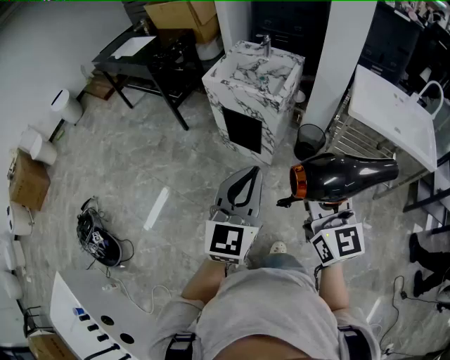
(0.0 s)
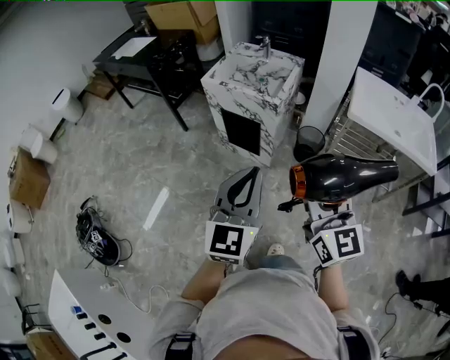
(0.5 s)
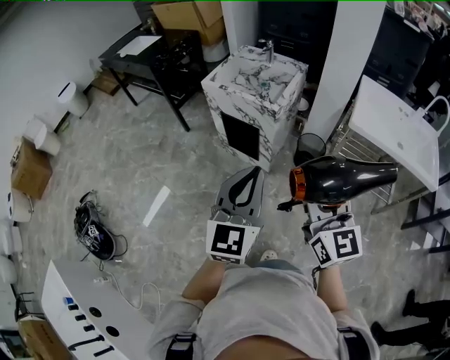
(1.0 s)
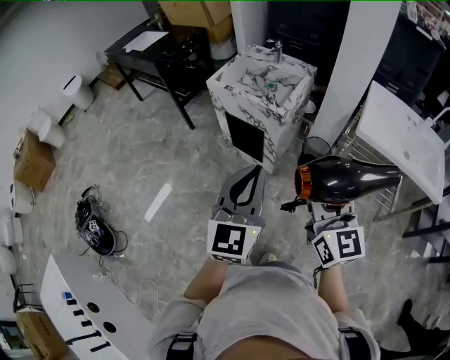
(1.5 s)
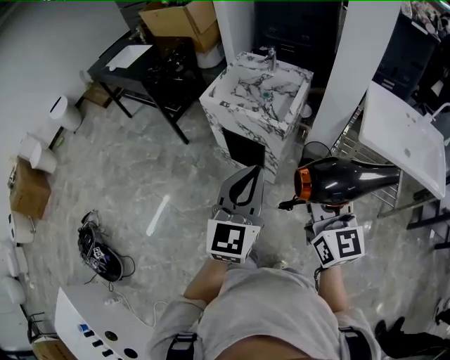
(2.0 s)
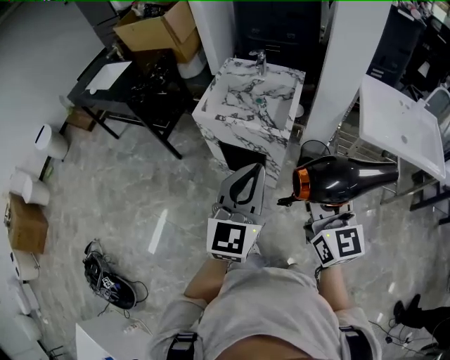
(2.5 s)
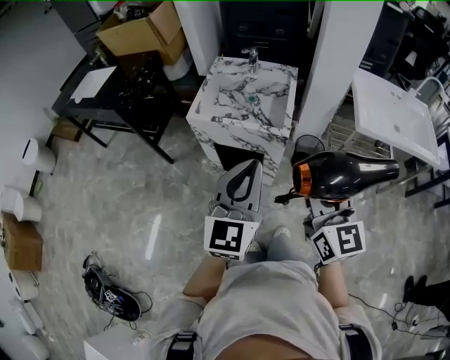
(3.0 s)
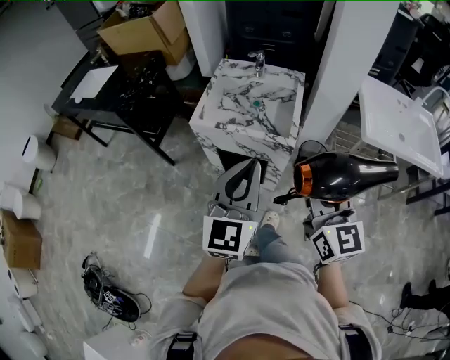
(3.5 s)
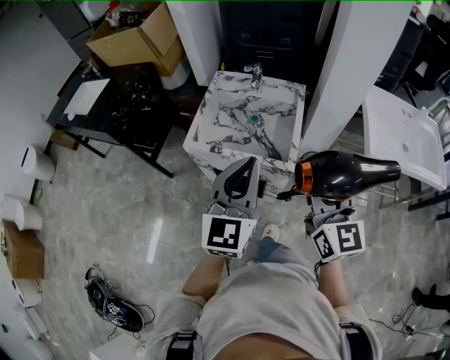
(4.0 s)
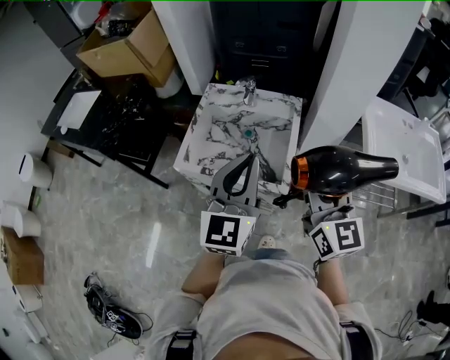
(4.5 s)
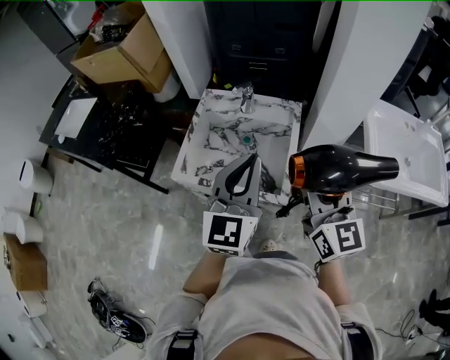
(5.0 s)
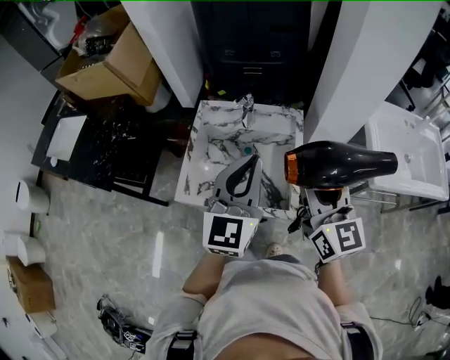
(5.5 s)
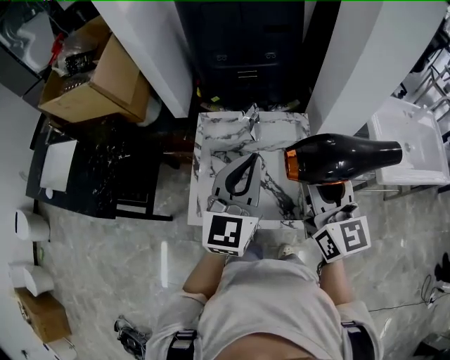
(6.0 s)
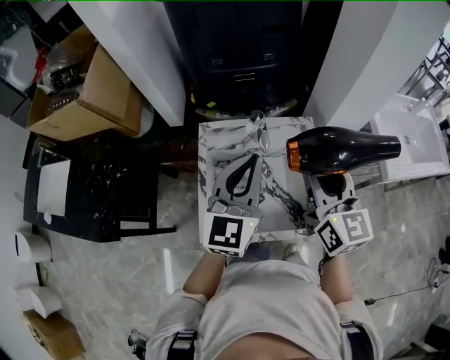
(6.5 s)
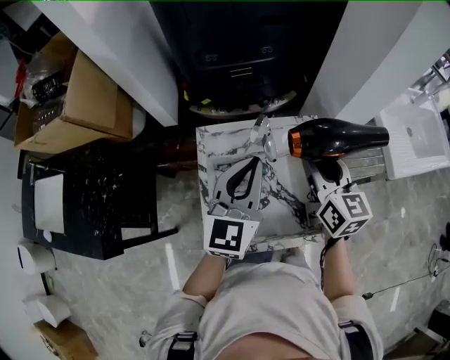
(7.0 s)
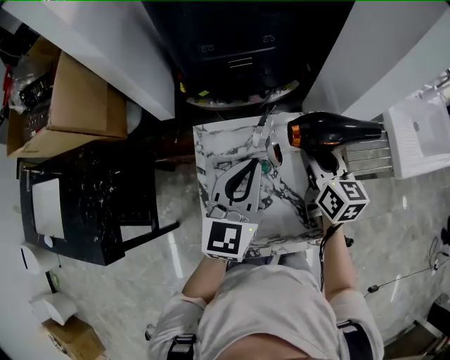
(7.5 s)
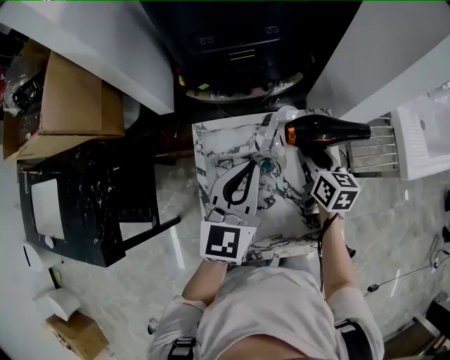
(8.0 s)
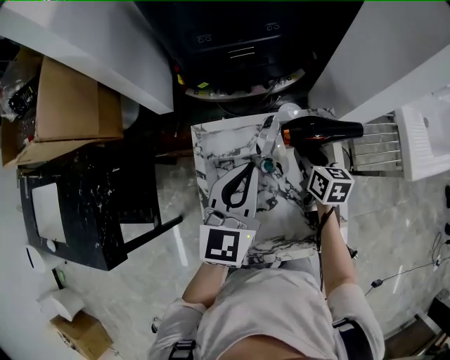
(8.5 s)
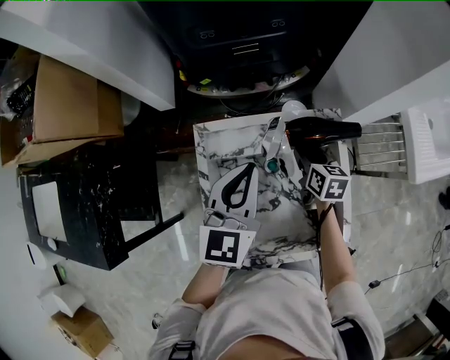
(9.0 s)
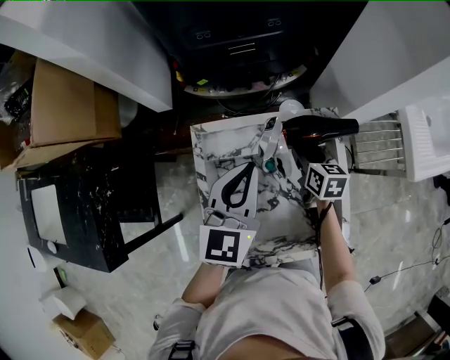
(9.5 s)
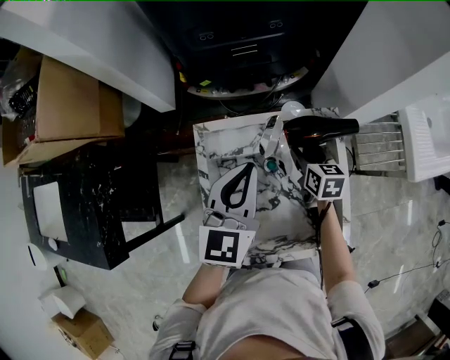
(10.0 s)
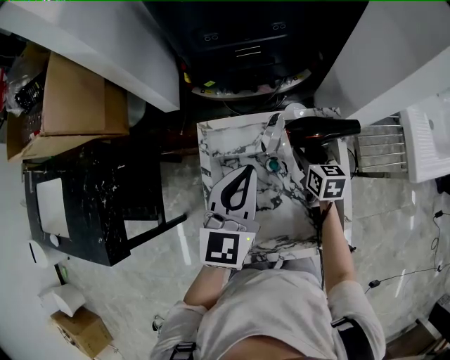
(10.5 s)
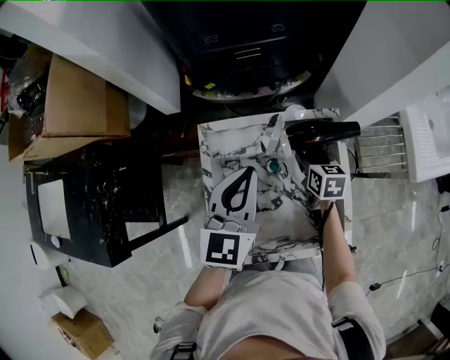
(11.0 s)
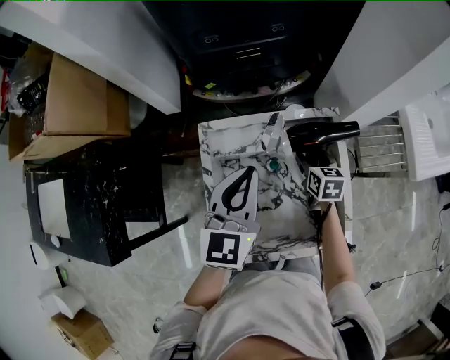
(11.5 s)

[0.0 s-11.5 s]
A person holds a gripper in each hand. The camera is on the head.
0.0 to 2.0 s: Both grippers travel together forward, roughly 15 cm.
2.0 to 4.0 s: The right gripper moves forward and to the left, approximately 25 cm, while the left gripper moves forward, roughly 25 cm.
4.0 to 6.0 s: Both grippers move forward, about 25 cm.
6.0 to 7.5 s: The left gripper shifts some 15 cm forward, downward and to the left, while the right gripper travels forward and downward by roughly 25 cm, and swivels roughly 30 degrees.
7.5 to 9.5 s: The left gripper moves some 5 cm, while the right gripper is displaced downward by approximately 15 cm, and changes its angle by some 20 degrees.
9.5 to 11.5 s: The grippers stay close to where they were, moving slightly.

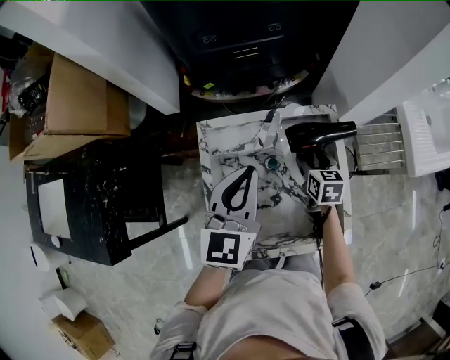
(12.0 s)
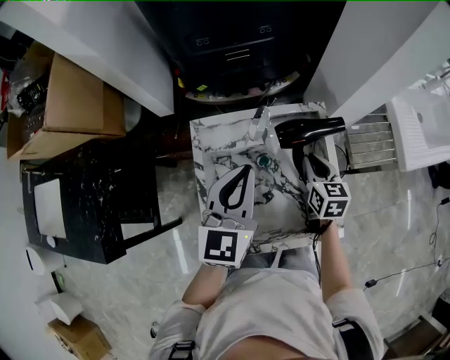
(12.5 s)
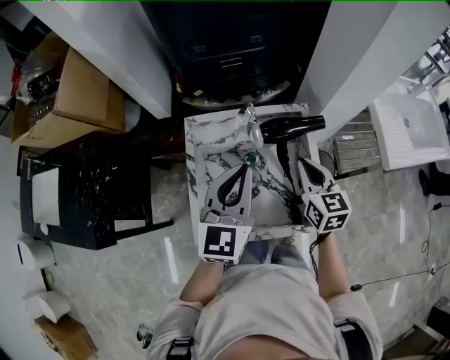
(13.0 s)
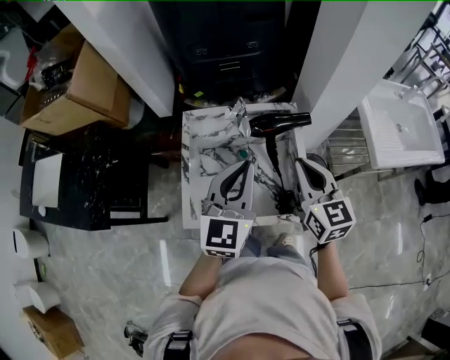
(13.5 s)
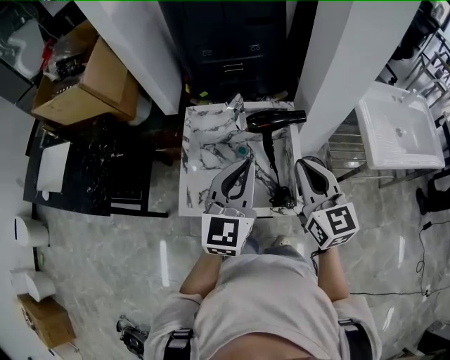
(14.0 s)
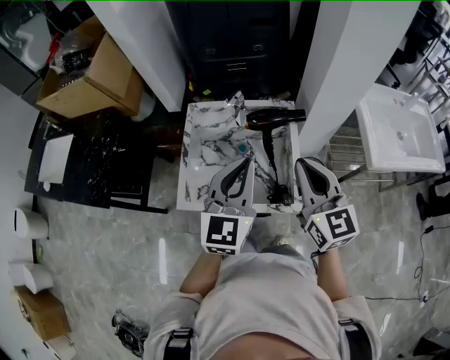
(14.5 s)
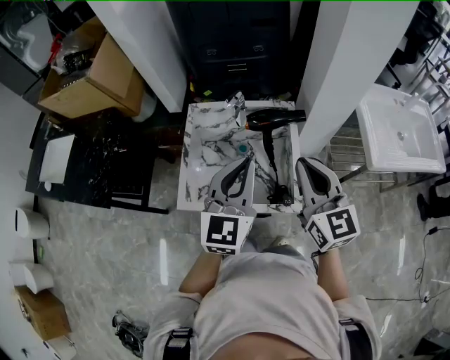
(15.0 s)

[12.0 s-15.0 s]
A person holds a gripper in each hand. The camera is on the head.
12.0 to 13.5 s: The right gripper heads upward and backward, covering some 30 cm, swivels about 30 degrees, and closes up, while the left gripper heads backward, to the right and upward, covering roughly 15 cm.
13.5 to 15.0 s: The right gripper heads upward and backward, covering approximately 10 cm, while the left gripper is displaced backward by roughly 5 cm.

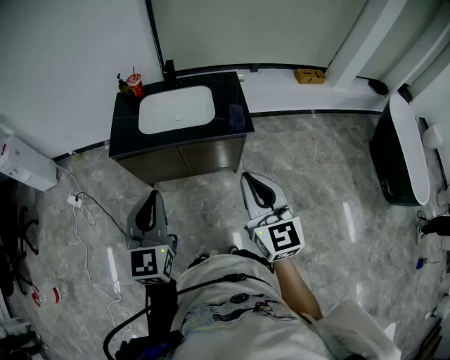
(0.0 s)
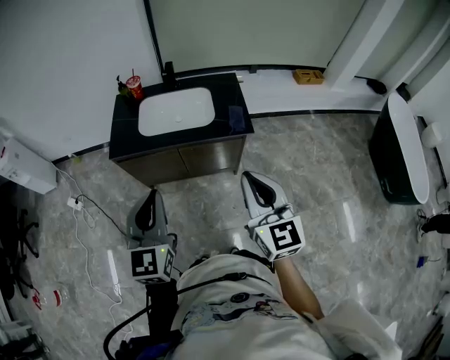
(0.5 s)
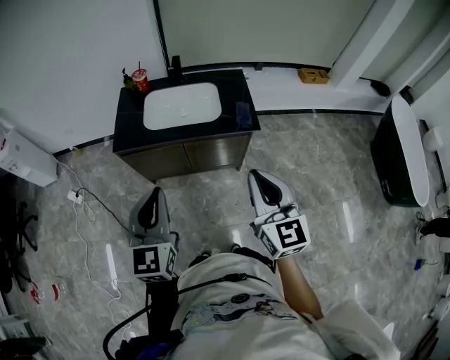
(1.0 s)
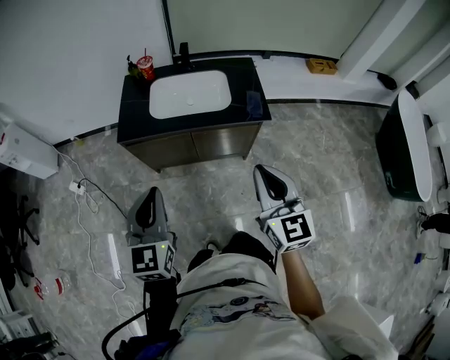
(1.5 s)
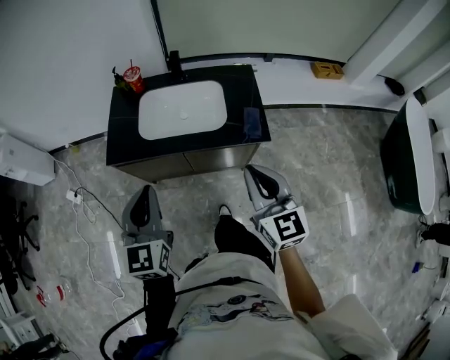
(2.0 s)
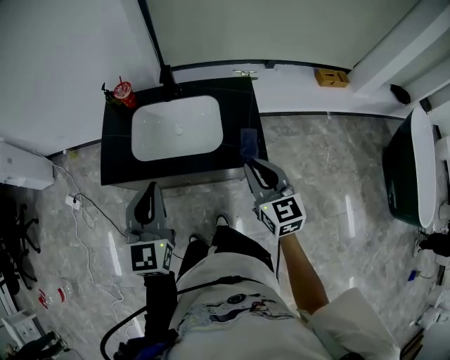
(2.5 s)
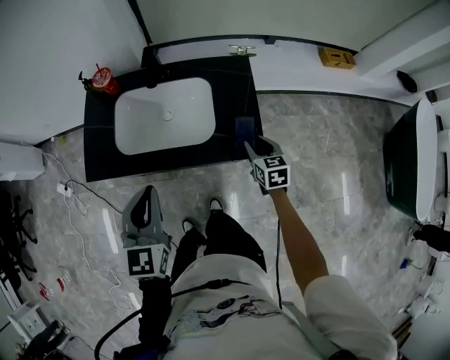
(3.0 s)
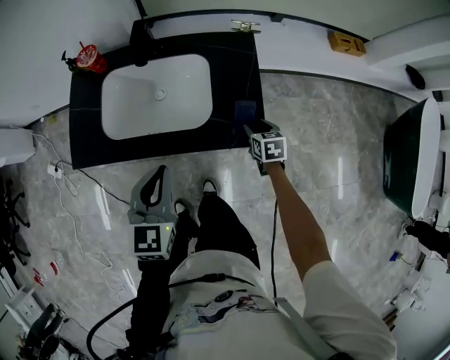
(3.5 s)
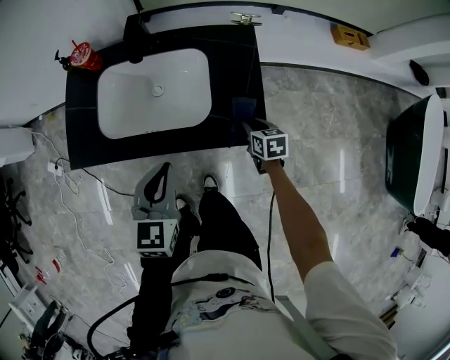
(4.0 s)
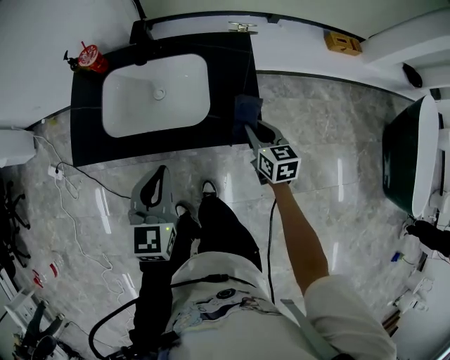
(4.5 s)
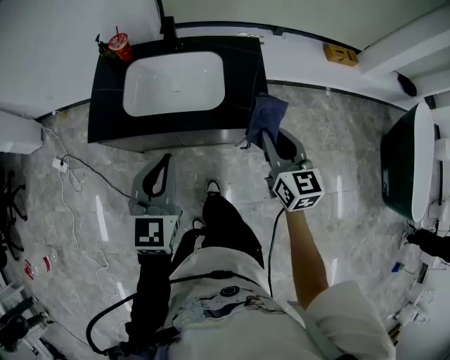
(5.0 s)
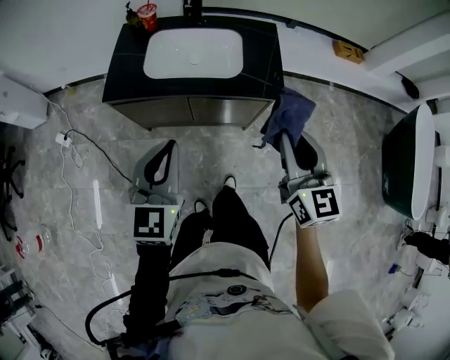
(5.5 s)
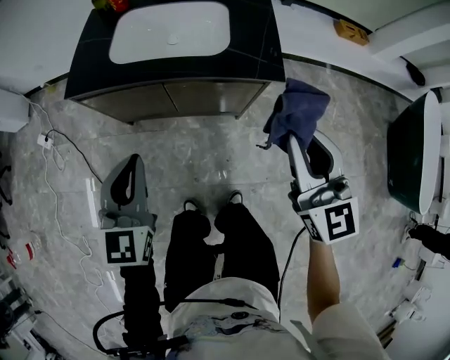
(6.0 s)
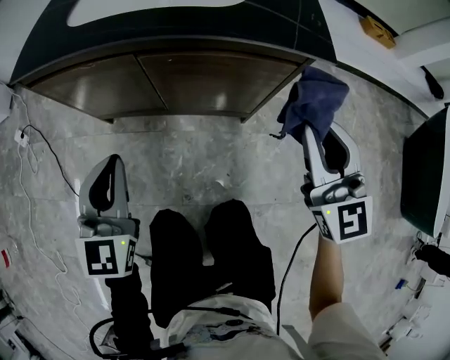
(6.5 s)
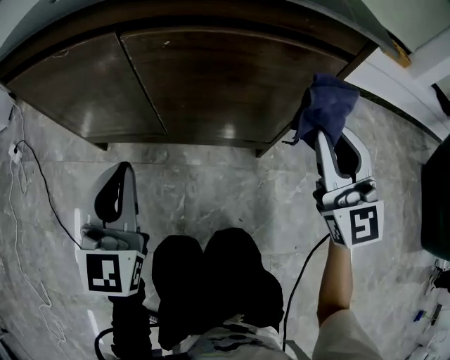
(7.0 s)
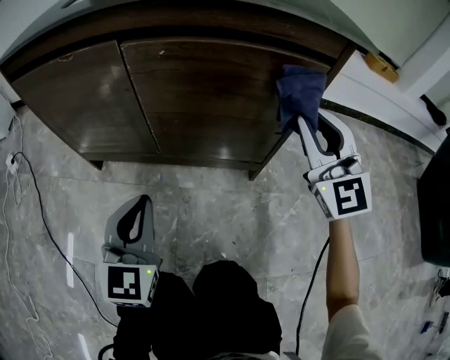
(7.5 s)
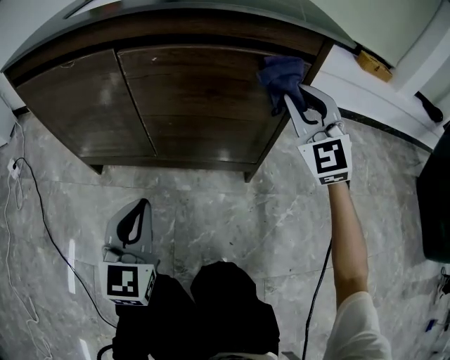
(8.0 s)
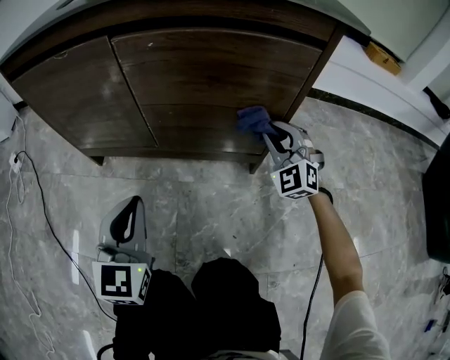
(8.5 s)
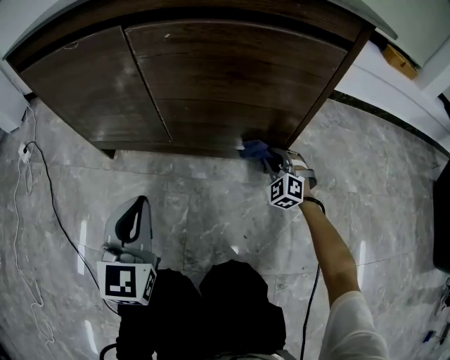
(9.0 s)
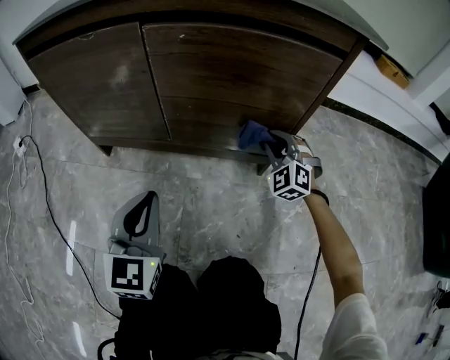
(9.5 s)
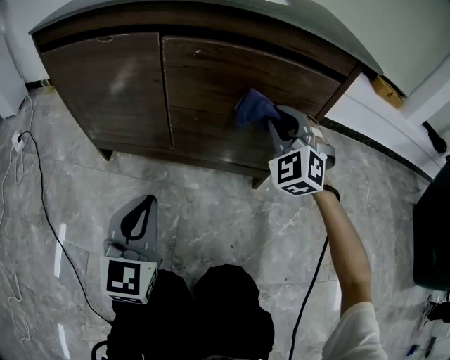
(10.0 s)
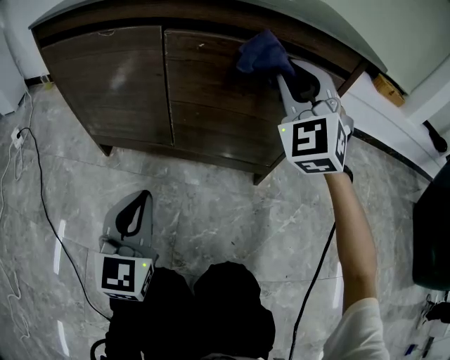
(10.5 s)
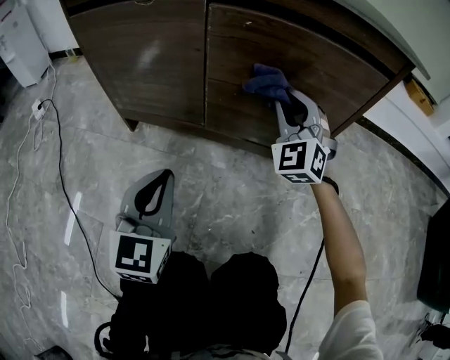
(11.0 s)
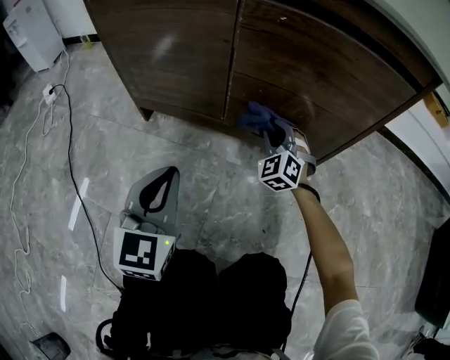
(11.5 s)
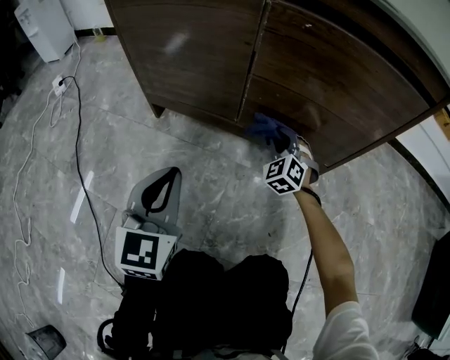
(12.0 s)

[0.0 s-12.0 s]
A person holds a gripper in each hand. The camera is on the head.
0.0 to 2.0 s: The left gripper is displaced forward by about 15 cm, while the right gripper heads forward and downward, covering roughly 15 cm.
2.0 to 4.0 s: The left gripper is displaced downward, forward and to the right by some 25 cm, and turns by approximately 20 degrees; the right gripper travels downward, forward and to the right by about 50 cm, points its fingers roughly 40 degrees further downward, and opens, then closes once more.
4.0 to 6.0 s: The left gripper moves backward and to the left, about 25 cm, while the right gripper goes roughly 40 cm upward and backward, and angles its fingers upward, by approximately 40 degrees.
6.0 to 8.0 s: The right gripper moves downward and forward, roughly 40 cm, and changes its angle by about 40 degrees. The left gripper travels downward by approximately 40 cm.
8.0 to 10.0 s: The right gripper shifts some 10 cm to the left, moves some 35 cm downward and comes back, and swivels some 20 degrees.
10.0 to 12.0 s: The right gripper shifts about 30 cm downward and to the left, while the left gripper moves to the left, about 10 cm.
